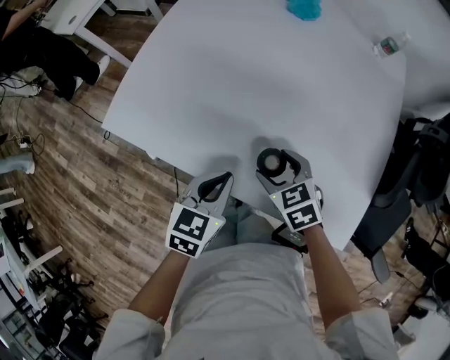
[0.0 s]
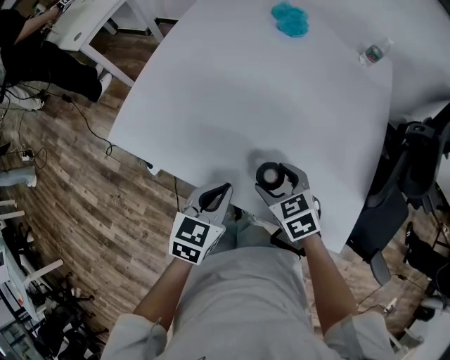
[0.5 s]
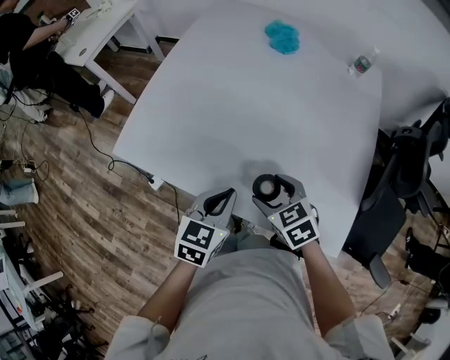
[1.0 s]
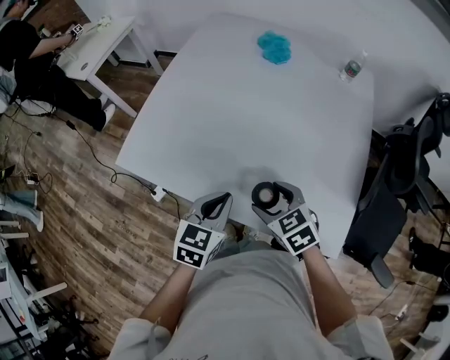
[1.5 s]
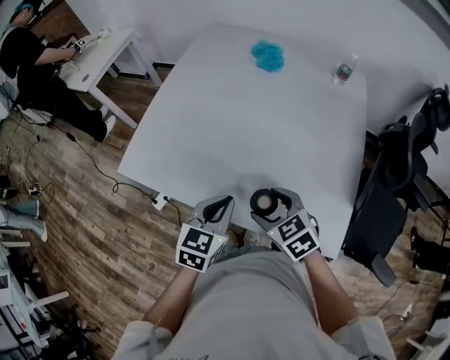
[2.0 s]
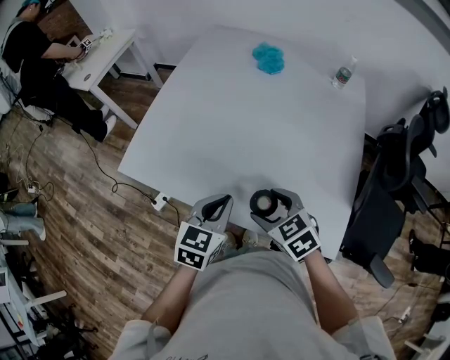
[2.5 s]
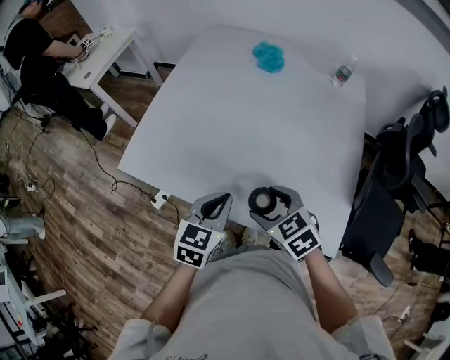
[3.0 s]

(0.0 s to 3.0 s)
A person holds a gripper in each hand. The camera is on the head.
0.0 s - 1.5 s: Both grippers move upward, approximately 5 cm.
1.5 s - 3.0 s: There are only small adjustments of the grippers.

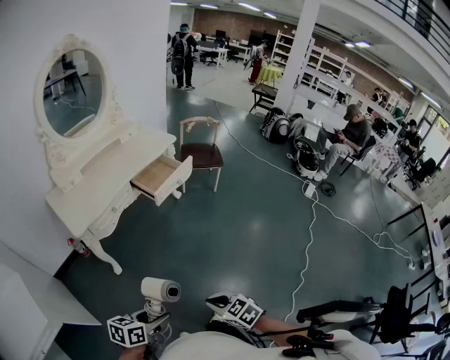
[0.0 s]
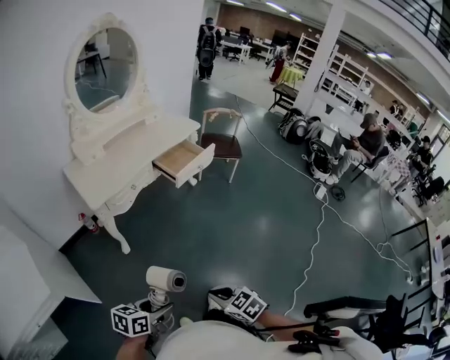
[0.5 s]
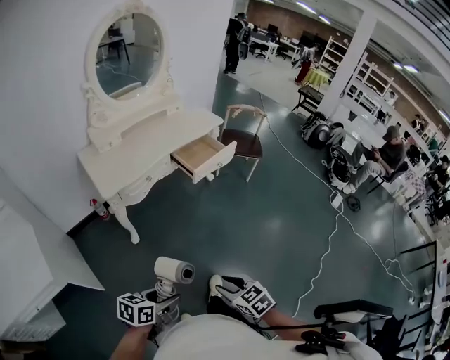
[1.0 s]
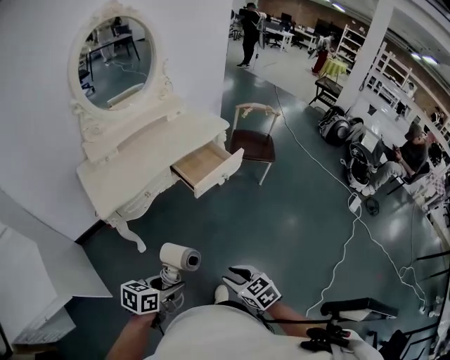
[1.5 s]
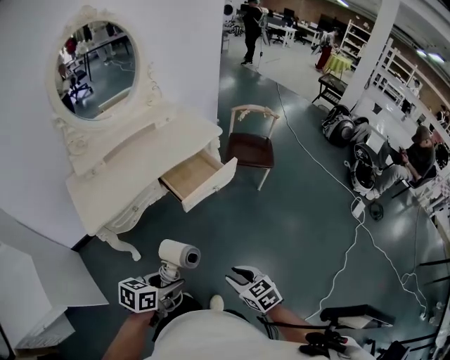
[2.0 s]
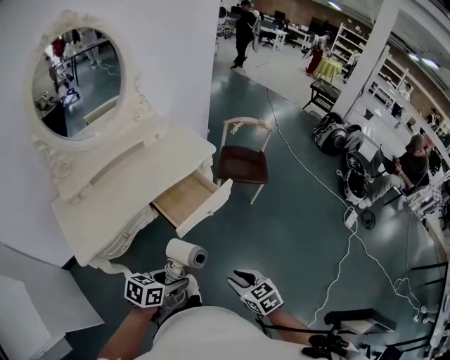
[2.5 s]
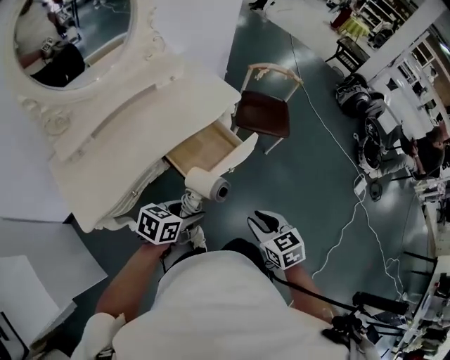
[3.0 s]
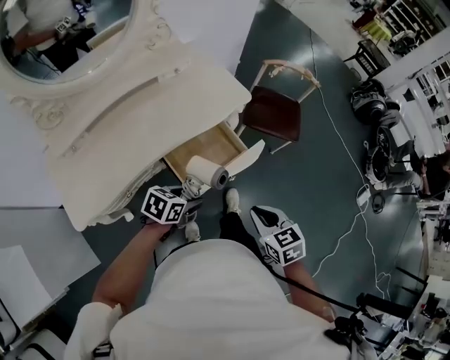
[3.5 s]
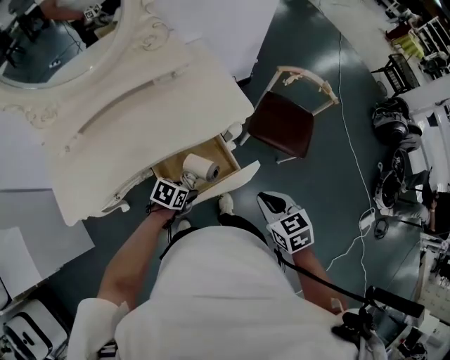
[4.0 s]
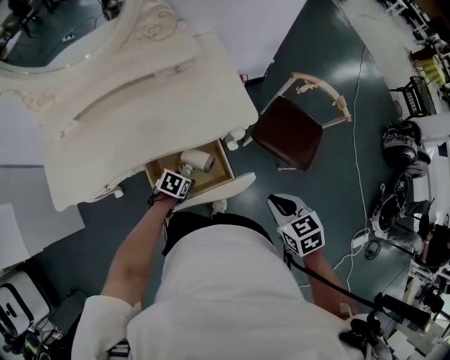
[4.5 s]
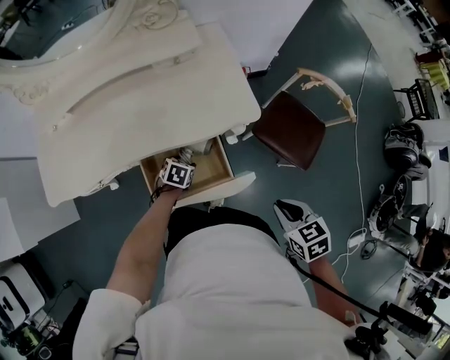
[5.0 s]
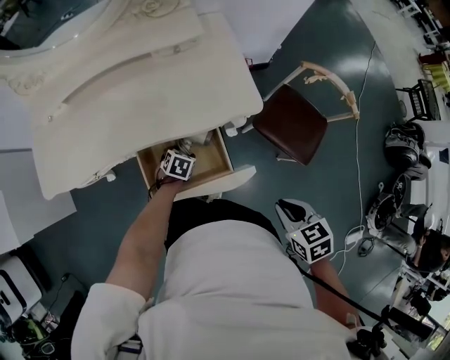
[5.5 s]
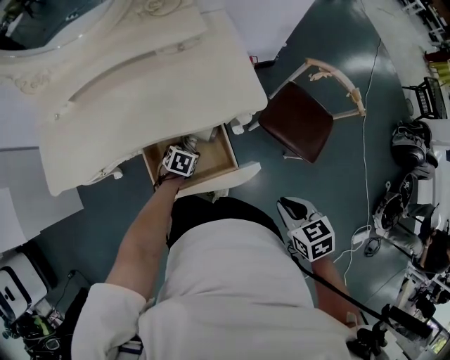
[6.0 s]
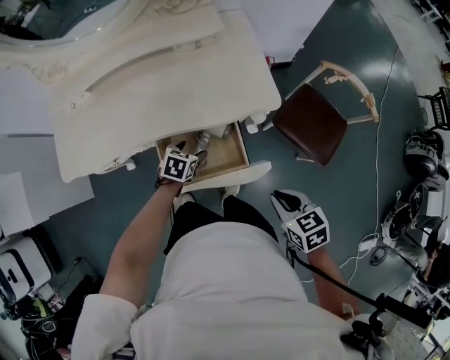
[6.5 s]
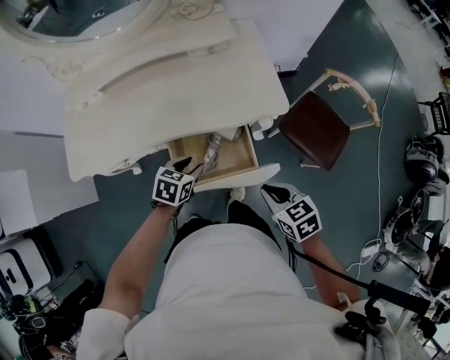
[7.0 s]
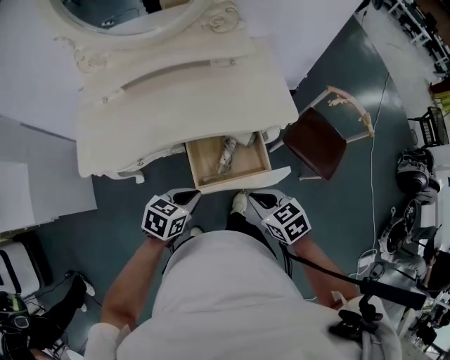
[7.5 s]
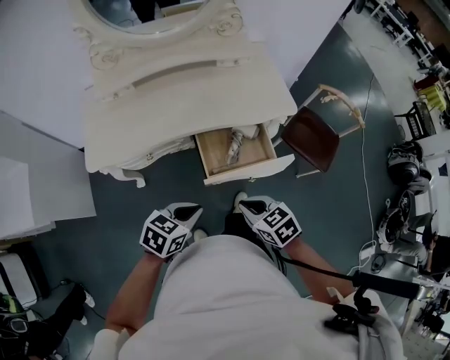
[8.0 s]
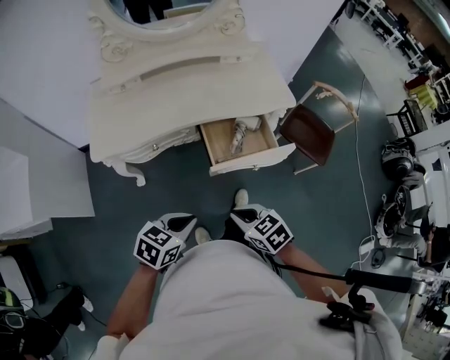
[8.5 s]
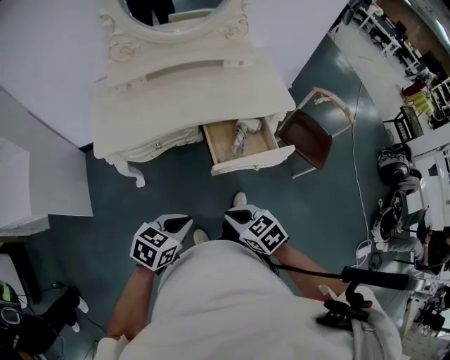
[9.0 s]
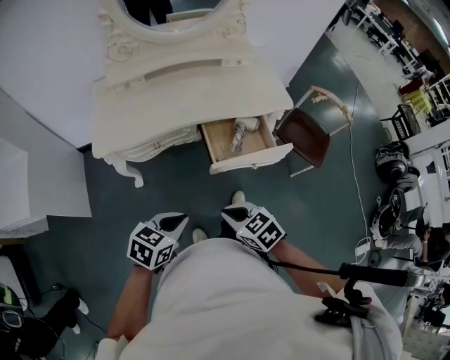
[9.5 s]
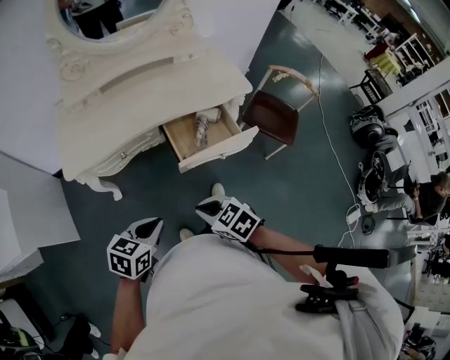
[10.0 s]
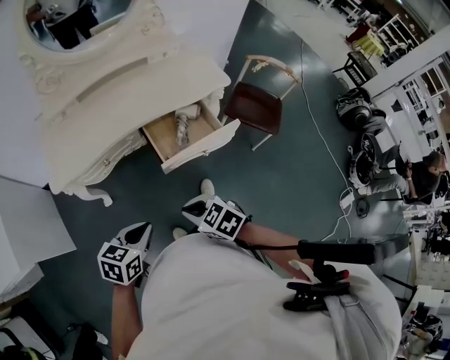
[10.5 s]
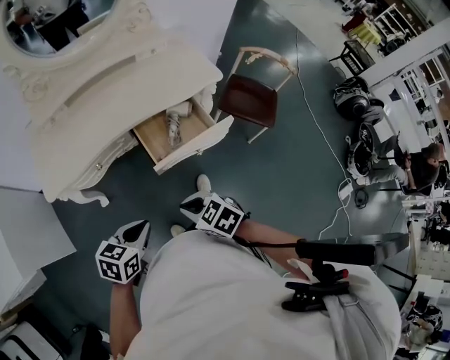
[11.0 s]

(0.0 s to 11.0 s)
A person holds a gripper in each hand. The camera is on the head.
0.0 s - 2.0 s: Both grippers travel together forward, approximately 30 cm. The right gripper opens.
2.0 s - 3.5 s: The grippers both shift forward by about 40 cm. The right gripper closes its fingers.
3.5 s - 5.5 s: The left gripper shifts by approximately 35 cm, and changes its angle by approximately 40 degrees; the right gripper moves some 30 cm, and swivels approximately 20 degrees.
5.5 s - 7.5 s: The right gripper heads to the left, covering about 25 cm. Meanwhile the left gripper travels upward, backward and to the left by about 35 cm, rotates roughly 20 degrees, and closes its fingers.
7.5 s - 9.0 s: Both grippers travel together backward and to the left, about 30 cm.
9.0 s - 11.0 s: The grippers make only small movements.

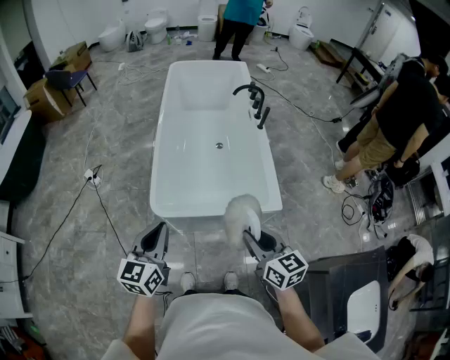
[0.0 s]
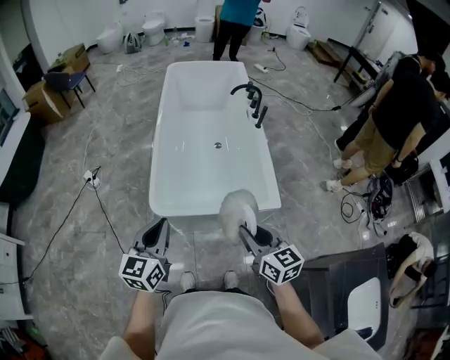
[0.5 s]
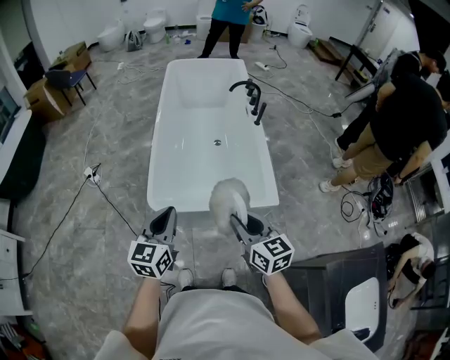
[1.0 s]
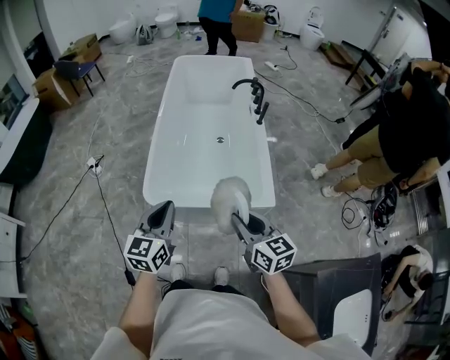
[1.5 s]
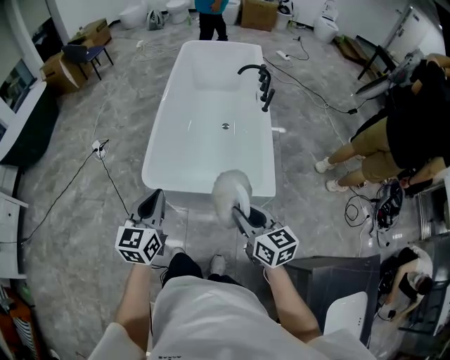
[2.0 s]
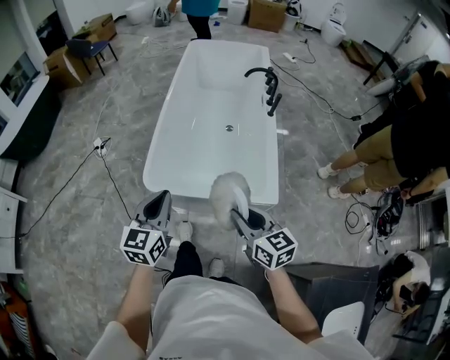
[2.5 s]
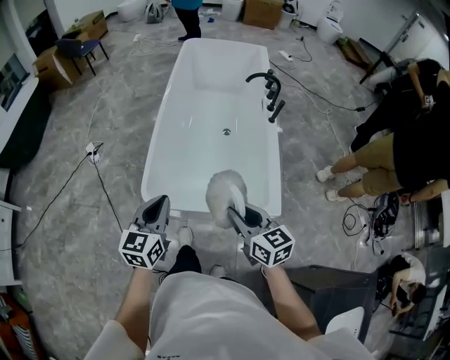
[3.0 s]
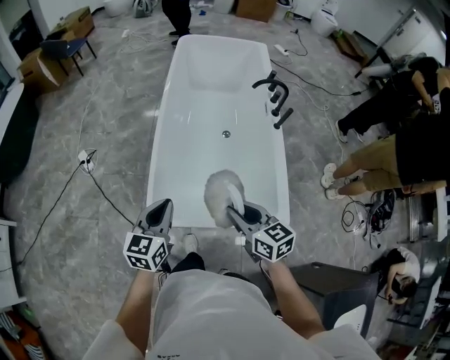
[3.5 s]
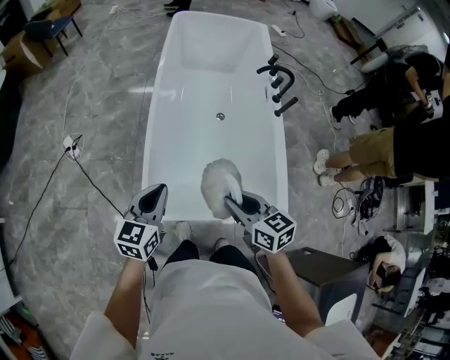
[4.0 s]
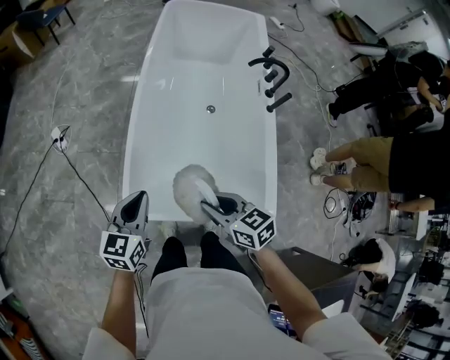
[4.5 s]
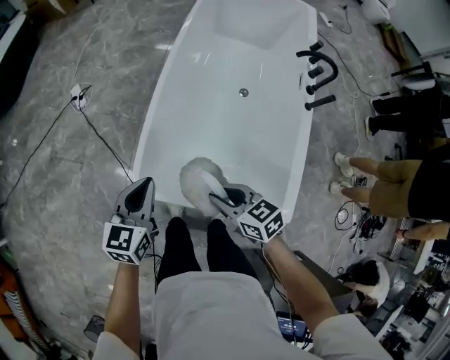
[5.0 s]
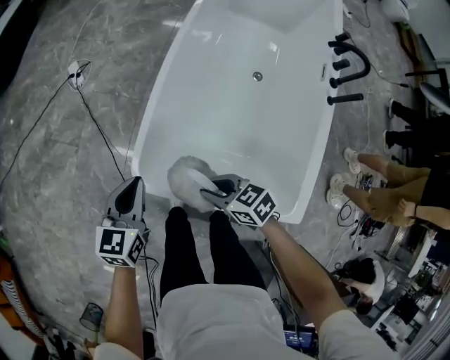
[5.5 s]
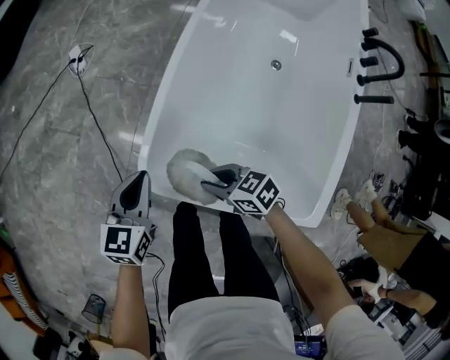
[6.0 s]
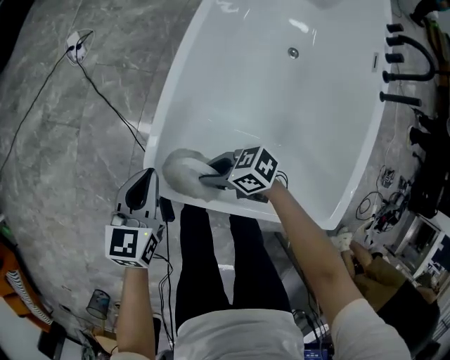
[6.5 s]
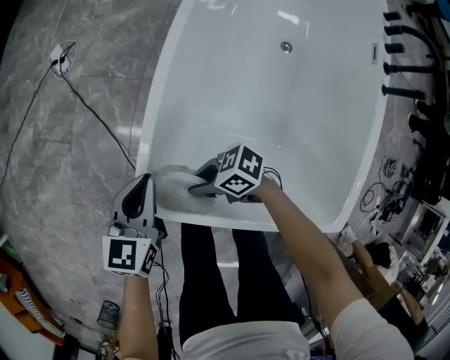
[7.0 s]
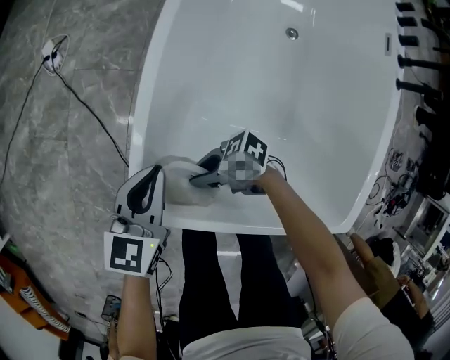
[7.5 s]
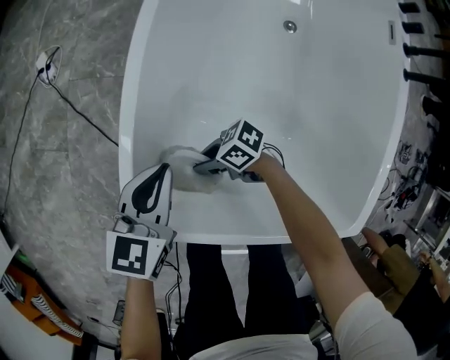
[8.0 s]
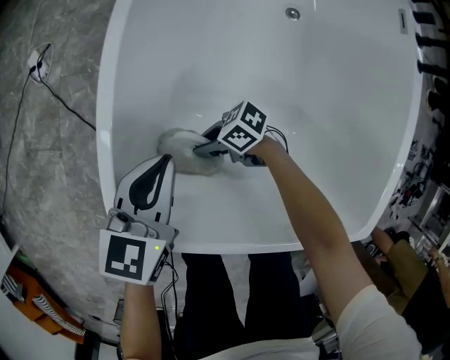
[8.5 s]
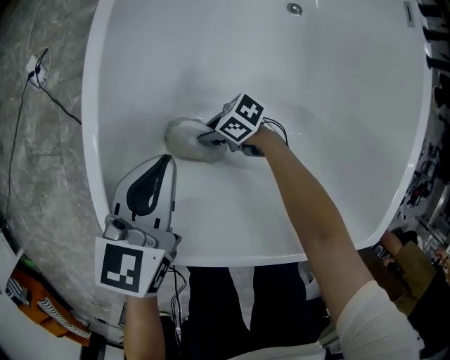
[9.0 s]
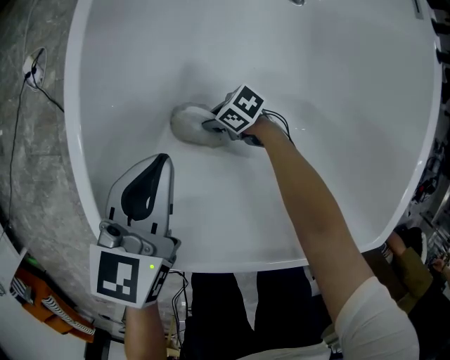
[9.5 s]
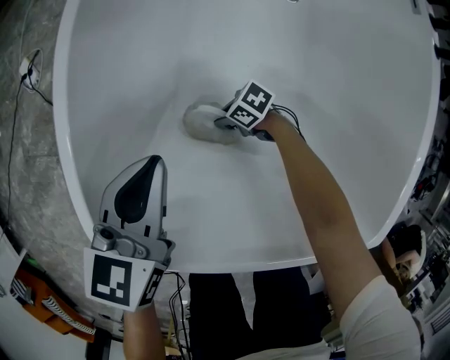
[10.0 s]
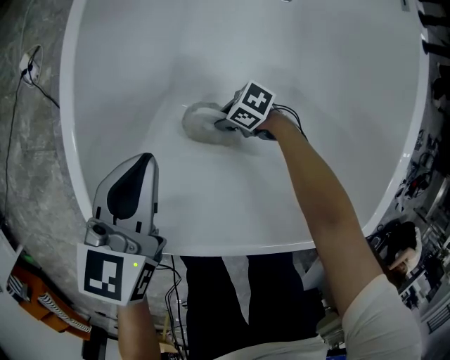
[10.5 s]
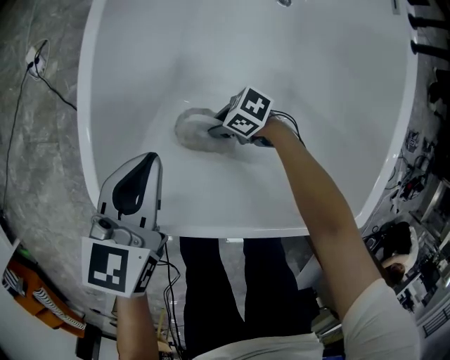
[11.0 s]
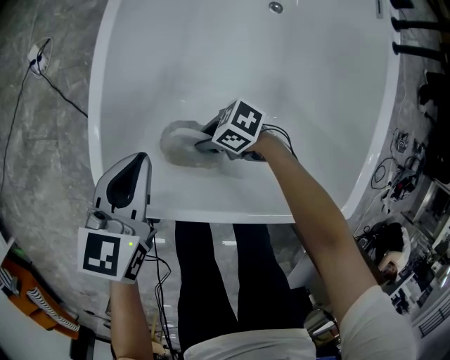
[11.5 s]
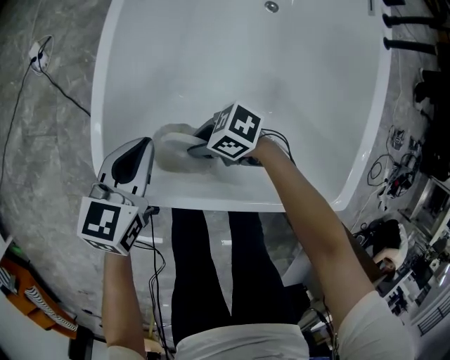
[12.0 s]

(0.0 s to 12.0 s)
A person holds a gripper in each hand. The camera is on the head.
0.0 s - 2.0 s: Both grippers move to the right, about 5 cm.
2.0 s - 4.0 s: The right gripper goes about 30 cm forward and to the left. Meanwhile the left gripper heads forward, covering about 25 cm.
4.0 s - 6.0 s: Both grippers move downward, roughly 25 cm. The left gripper turns by approximately 30 degrees; the right gripper turns by some 50 degrees.
6.0 s - 8.0 s: The left gripper travels downward by approximately 15 cm, while the right gripper moves downward, roughly 20 cm, and swivels approximately 30 degrees.
8.0 s - 10.0 s: The left gripper moves approximately 5 cm. Meanwhile the right gripper shifts roughly 20 cm downward.
10.0 s - 12.0 s: The right gripper shifts approximately 25 cm upward. Meanwhile the left gripper shifts by roughly 5 cm.

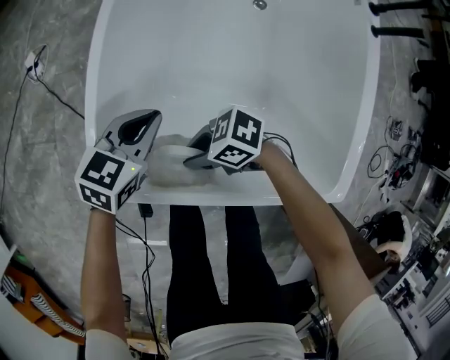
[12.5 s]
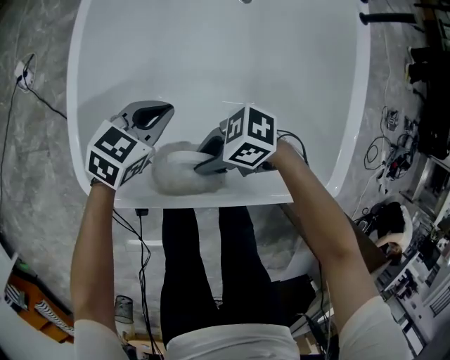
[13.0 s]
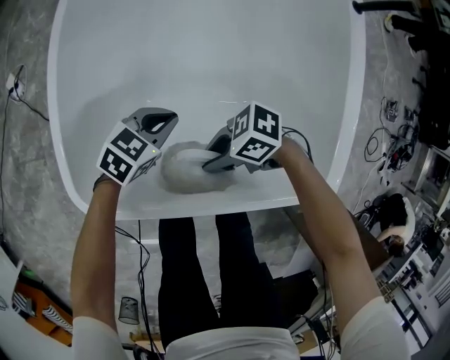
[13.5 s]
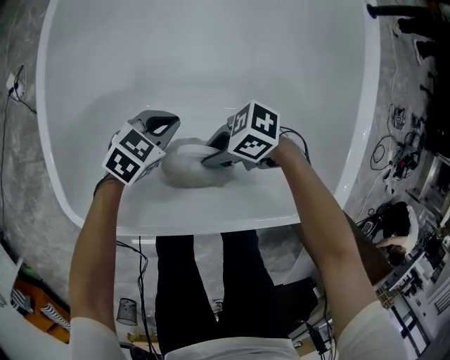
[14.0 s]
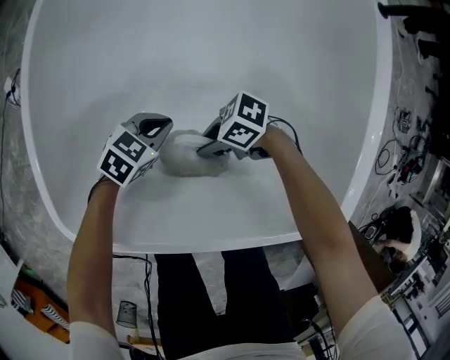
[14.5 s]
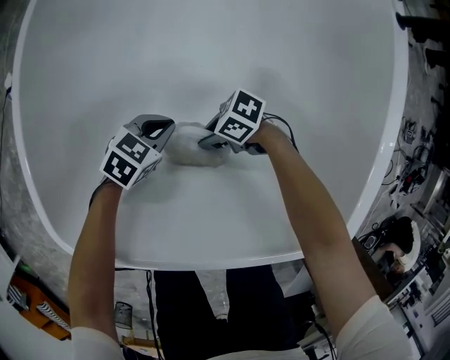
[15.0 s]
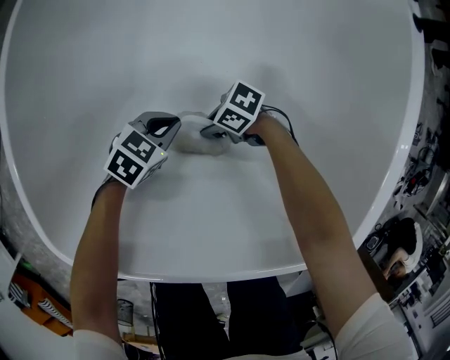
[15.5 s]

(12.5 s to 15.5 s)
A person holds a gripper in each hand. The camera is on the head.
12.5 s - 14.0 s: The right gripper changes place by about 15 cm; the left gripper is displaced downward by approximately 15 cm, and turns by about 20 degrees.
14.0 s - 15.5 s: The right gripper shifts roughly 20 cm downward. Meanwhile the left gripper moves downward, some 10 cm.
